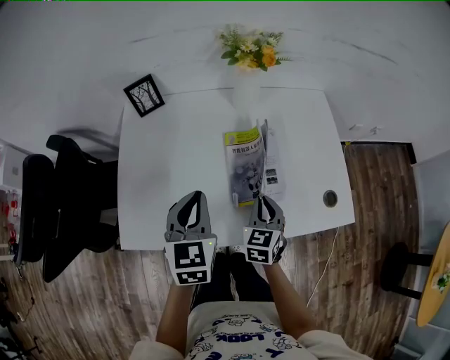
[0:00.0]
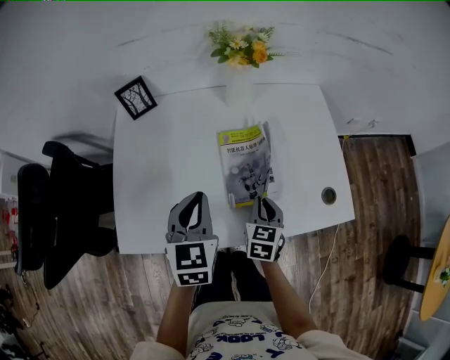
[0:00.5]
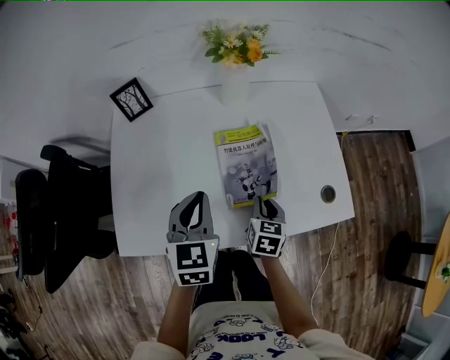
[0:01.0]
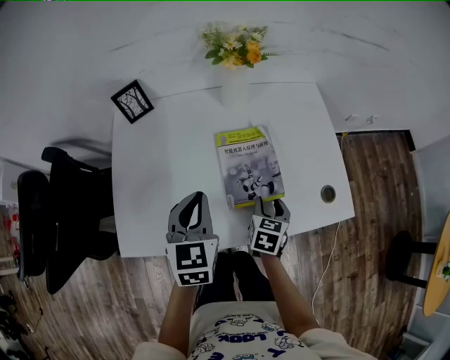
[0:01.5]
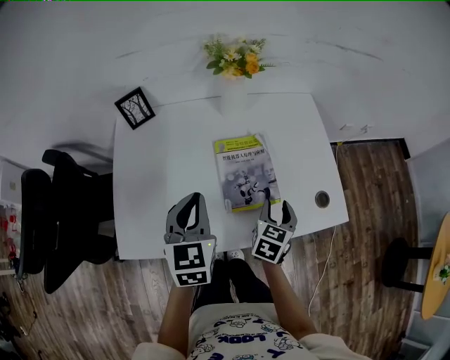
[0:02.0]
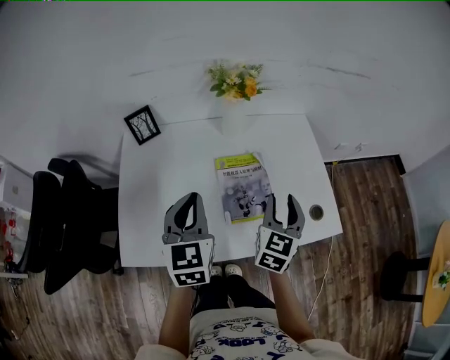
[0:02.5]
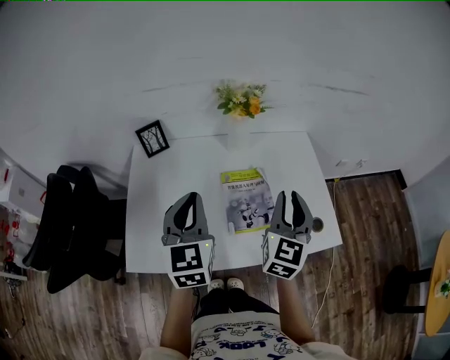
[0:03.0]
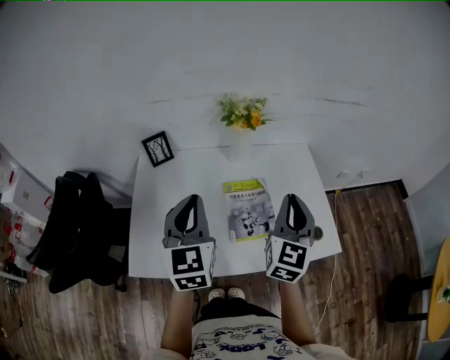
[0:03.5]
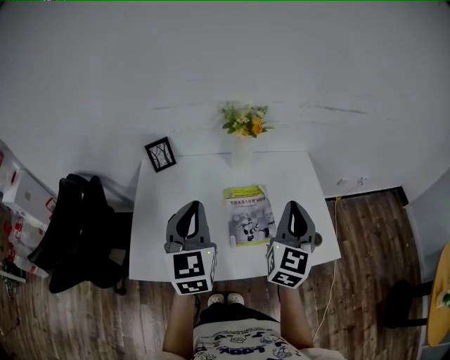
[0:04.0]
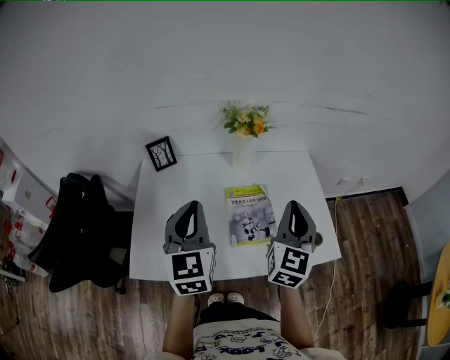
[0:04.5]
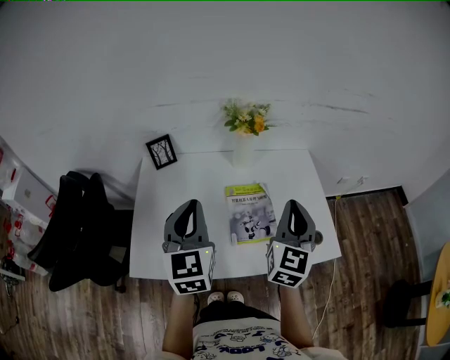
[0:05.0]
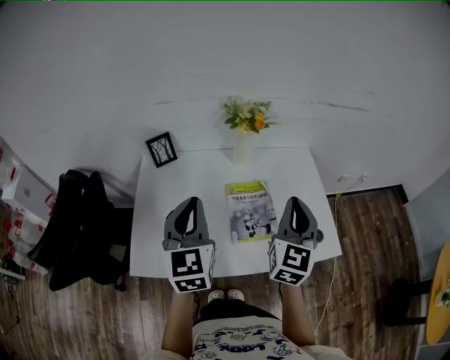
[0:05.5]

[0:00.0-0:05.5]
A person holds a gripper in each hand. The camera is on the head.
0:00.0 to 0:02.0: The right gripper moves to the right, about 10 cm, rotates about 20 degrees, and opens up.
0:02.0 to 0:03.5: The left gripper travels upward by approximately 15 cm. The right gripper moves upward, about 25 cm, angles its fingers upward, by roughly 30 degrees, and closes its fingers.
0:03.5 to 0:05.5: The grippers stay close to where they were, moving slightly.

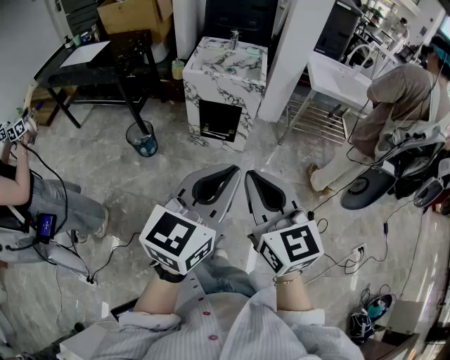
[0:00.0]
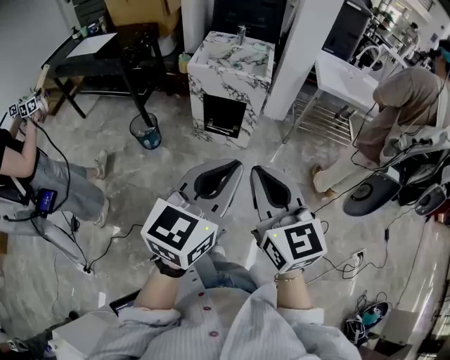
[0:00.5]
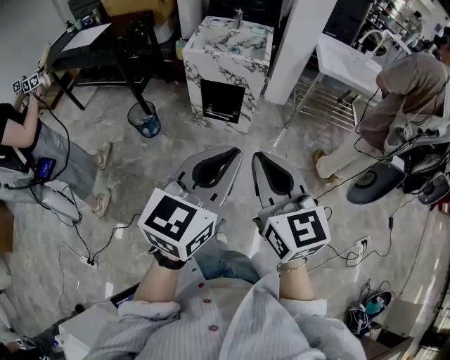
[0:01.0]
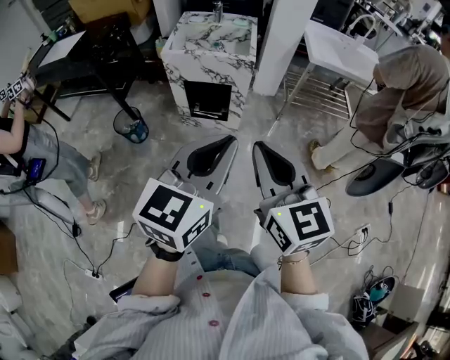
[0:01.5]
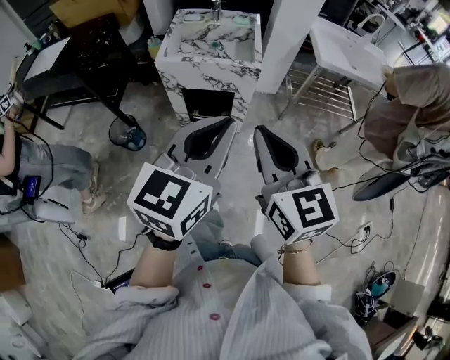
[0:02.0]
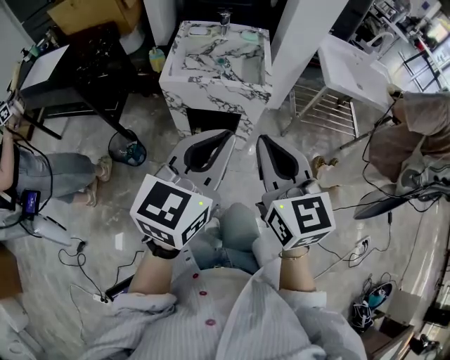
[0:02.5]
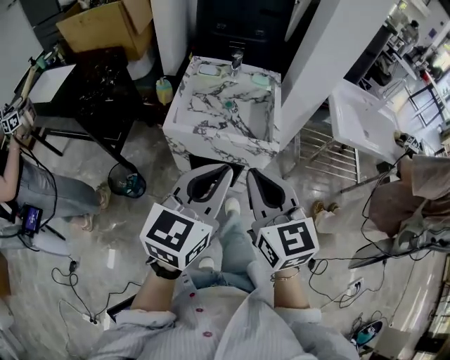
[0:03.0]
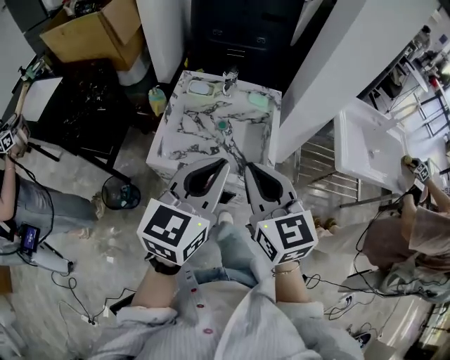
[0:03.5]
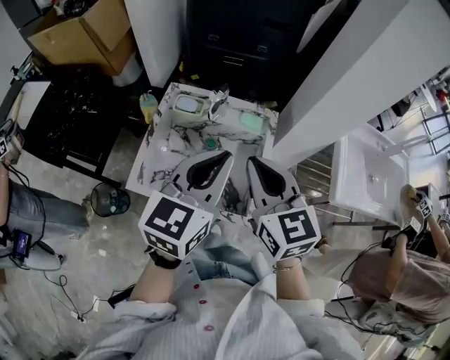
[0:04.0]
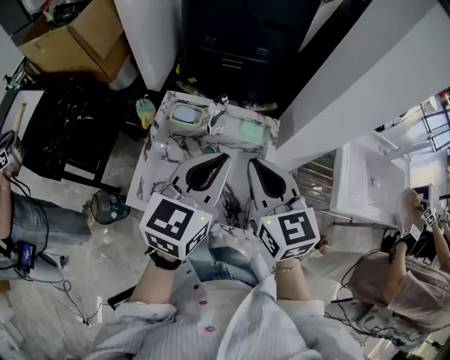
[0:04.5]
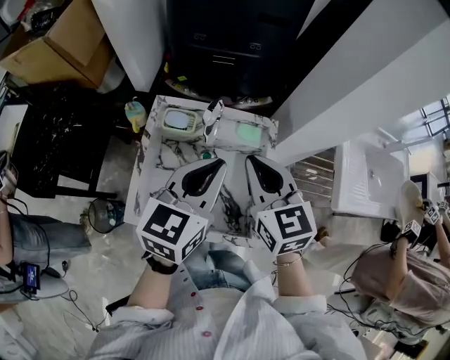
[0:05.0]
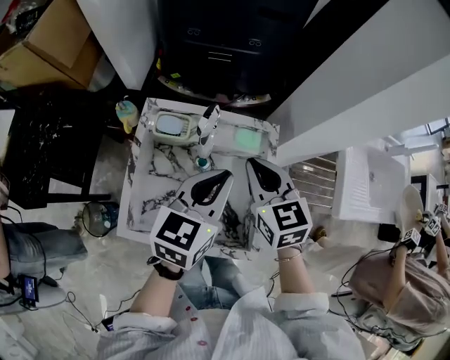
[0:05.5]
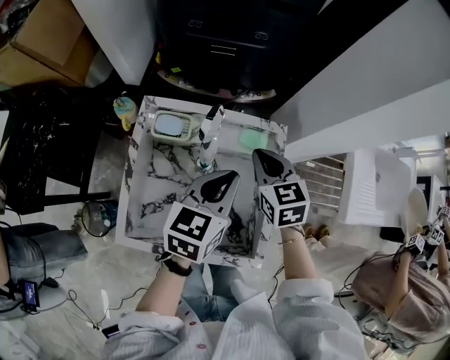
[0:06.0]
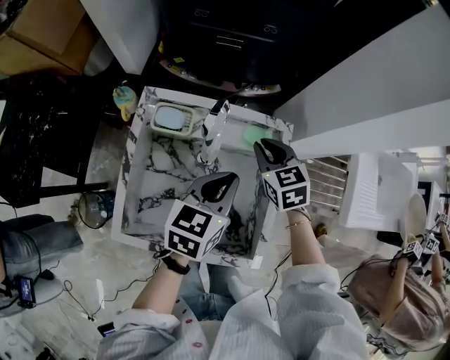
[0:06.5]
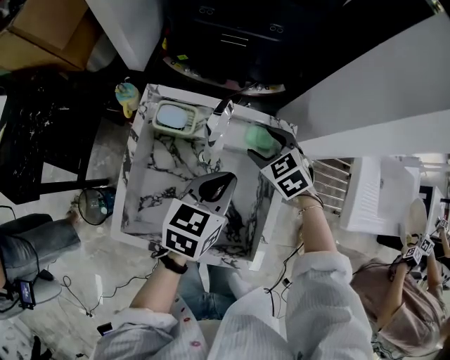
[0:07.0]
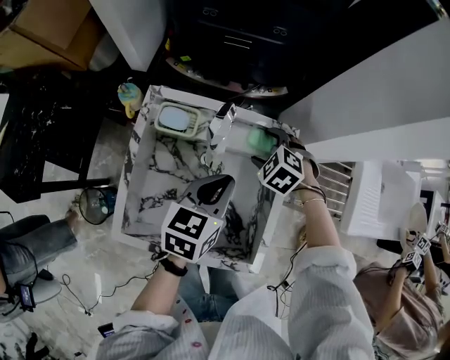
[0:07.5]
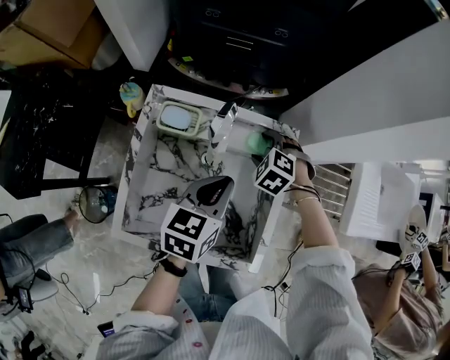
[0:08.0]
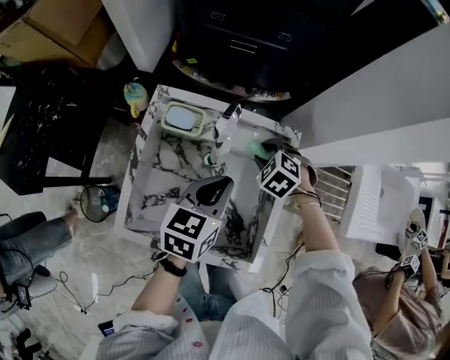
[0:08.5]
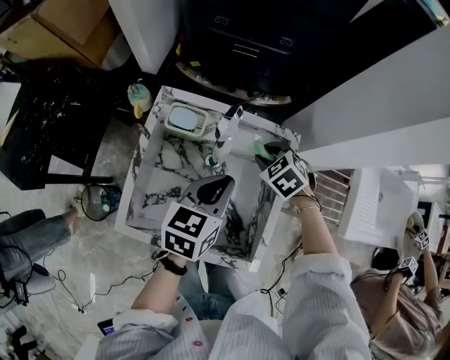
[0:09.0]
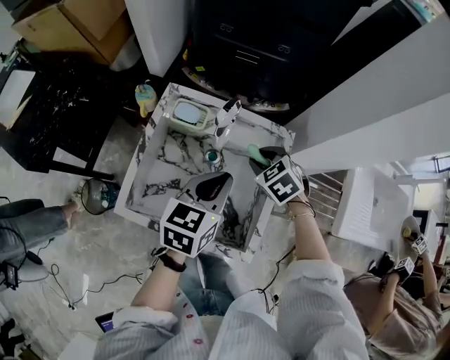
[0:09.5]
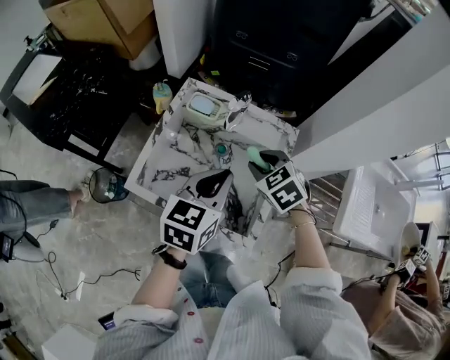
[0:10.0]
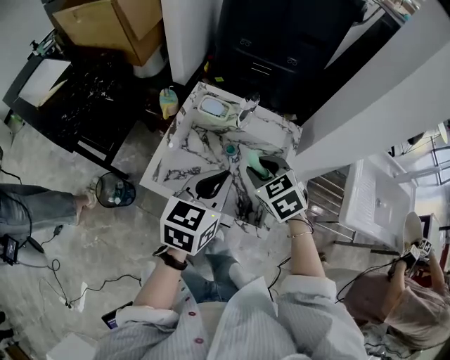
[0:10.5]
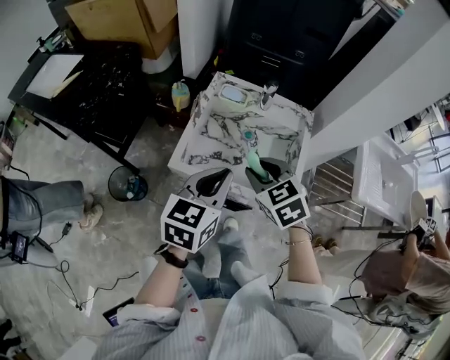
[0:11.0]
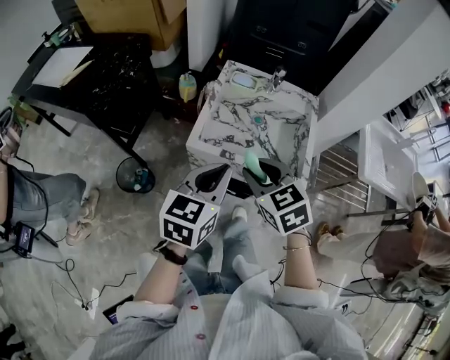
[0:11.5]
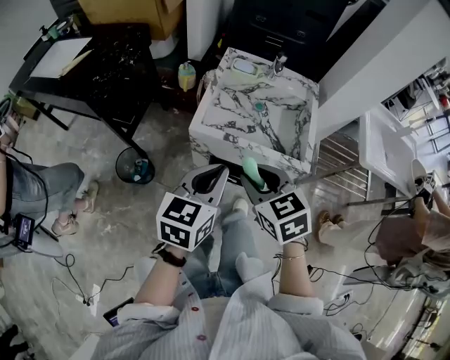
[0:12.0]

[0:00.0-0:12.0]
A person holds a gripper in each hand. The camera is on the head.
0:00.0 to 0:02.0: The two grippers go some 25 cm forward.
0:02.0 to 0:04.0: The pair of grippers is taken forward, roughly 50 cm.
0:04.0 to 0:06.0: The left gripper moves downward and forward, some 20 cm, and swivels about 20 degrees. The right gripper moves forward and downward, some 25 cm, and rotates some 20 degrees.
0:06.0 to 0:08.0: The right gripper travels downward by approximately 10 cm, rotates around the line of its fingers by about 50 degrees, counterclockwise from behind, and opens up. The left gripper moves about 5 cm.
0:08.0 to 0:10.0: The grippers both shift backward and upward by approximately 15 cm. The right gripper swivels about 30 degrees, and closes.
0:10.0 to 0:12.0: Both grippers move backward and to the left, approximately 35 cm. The right gripper rotates some 20 degrees.

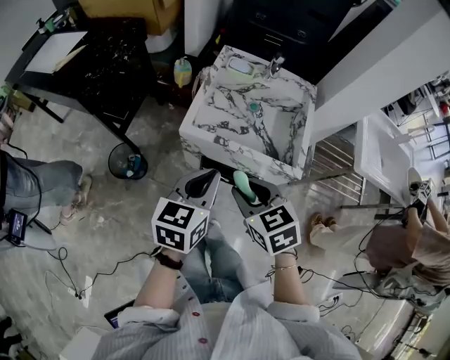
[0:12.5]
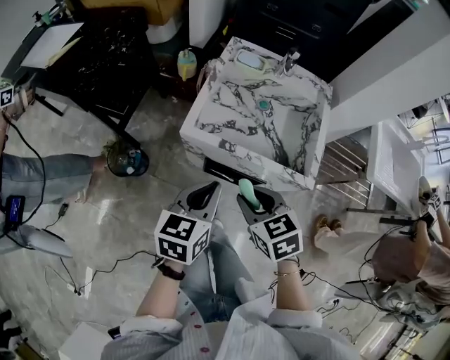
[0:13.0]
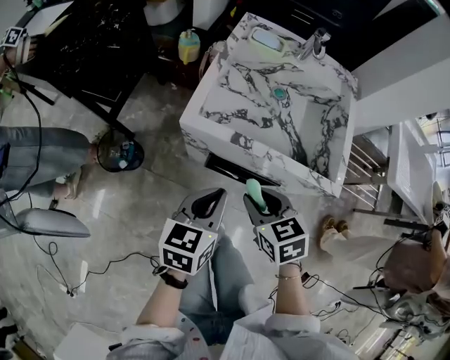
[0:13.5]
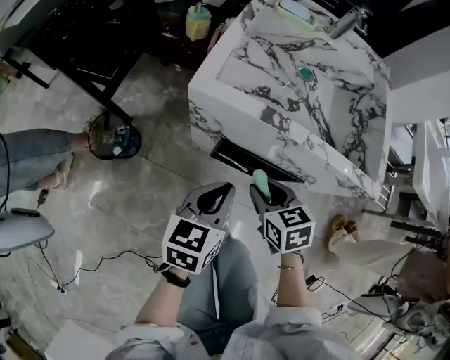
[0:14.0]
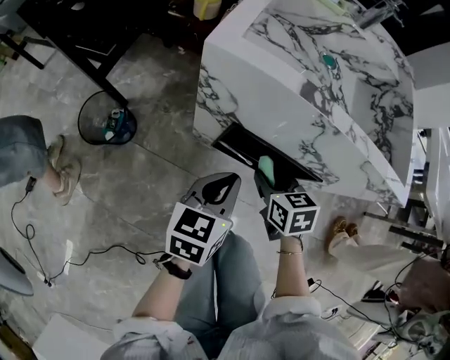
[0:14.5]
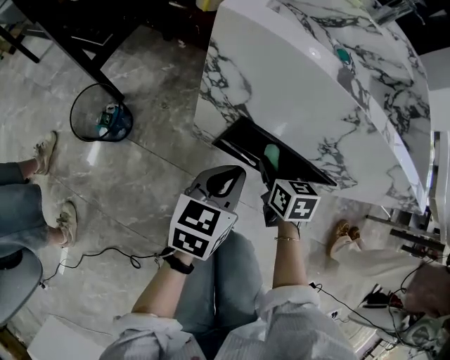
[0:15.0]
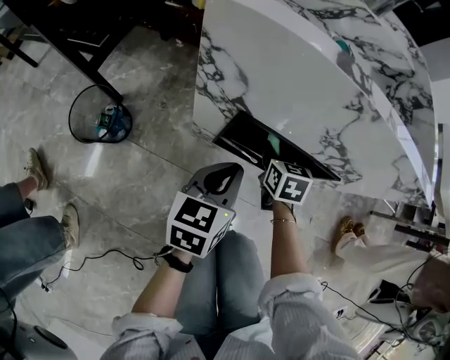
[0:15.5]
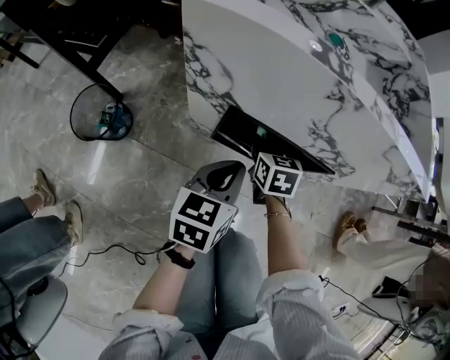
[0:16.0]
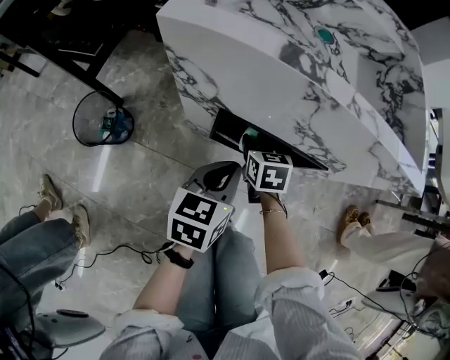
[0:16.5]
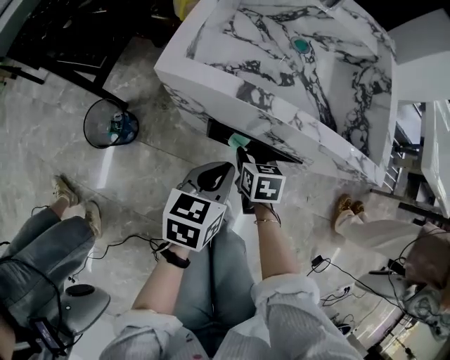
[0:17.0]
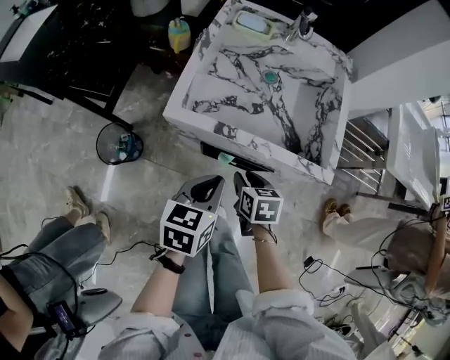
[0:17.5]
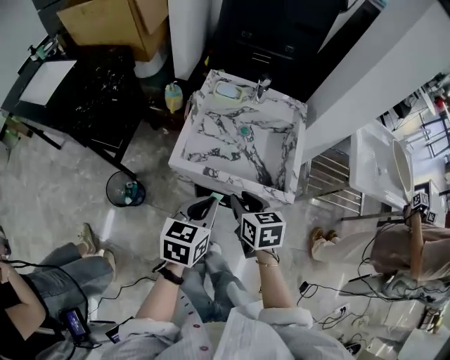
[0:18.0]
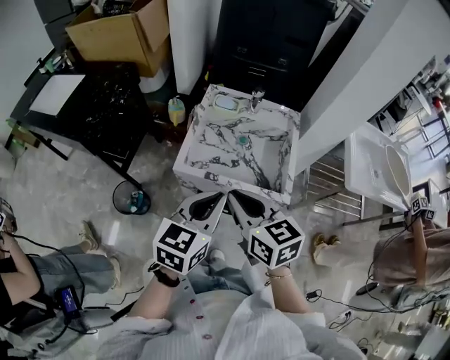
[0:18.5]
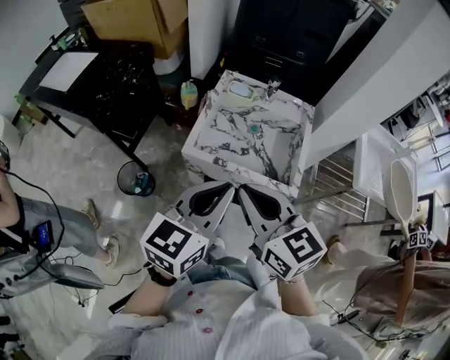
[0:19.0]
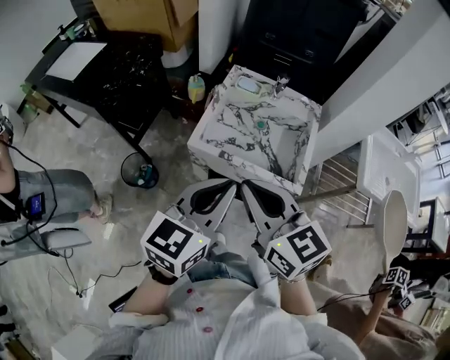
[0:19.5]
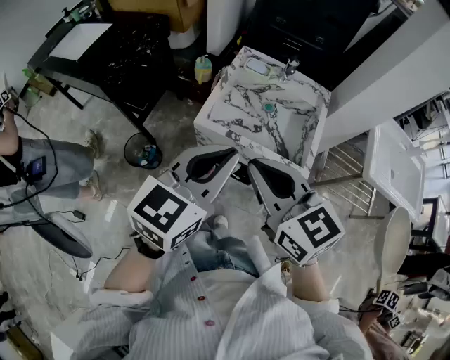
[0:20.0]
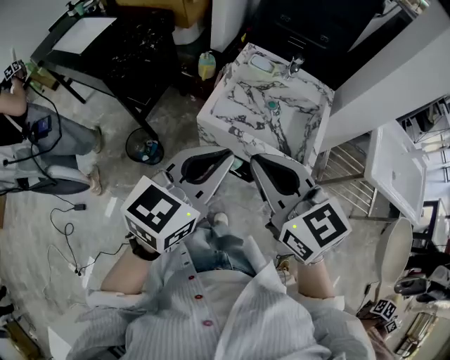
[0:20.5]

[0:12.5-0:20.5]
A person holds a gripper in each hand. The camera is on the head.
0:12.5 to 0:14.5: Both grippers move downward, some 40 cm.
0:14.5 to 0:16.5: The right gripper moves downward and forward, roughly 10 cm, while the left gripper changes place by roughly 5 cm.
0:16.5 to 0:18.5: The grippers both shift upward by some 50 cm. The right gripper rotates approximately 30 degrees. The left gripper swivels roughly 20 degrees.
0:18.5 to 0:20.5: The grippers both shift upward by approximately 5 cm. The right gripper rotates roughly 20 degrees.

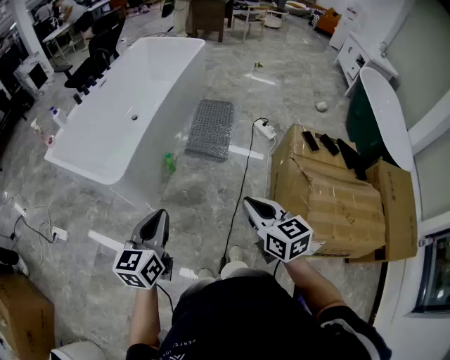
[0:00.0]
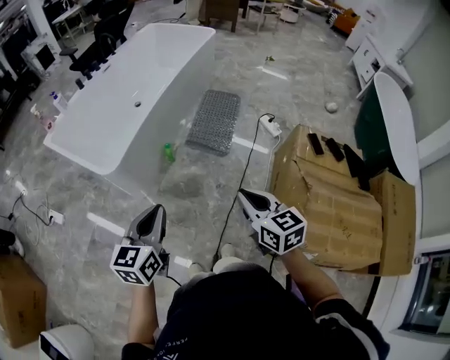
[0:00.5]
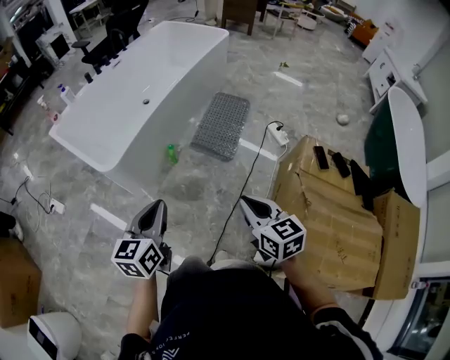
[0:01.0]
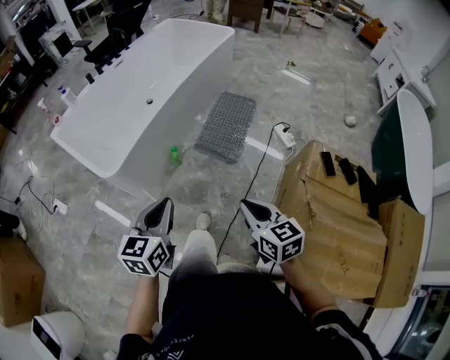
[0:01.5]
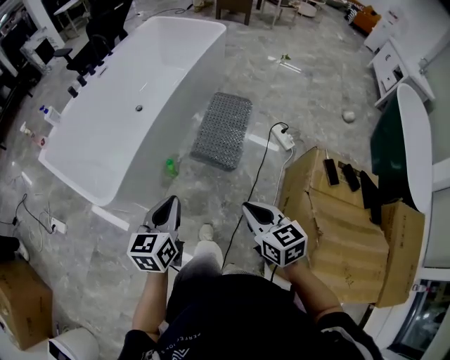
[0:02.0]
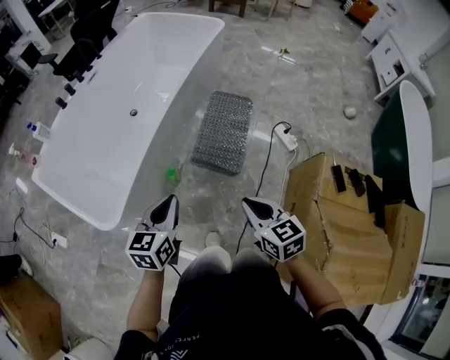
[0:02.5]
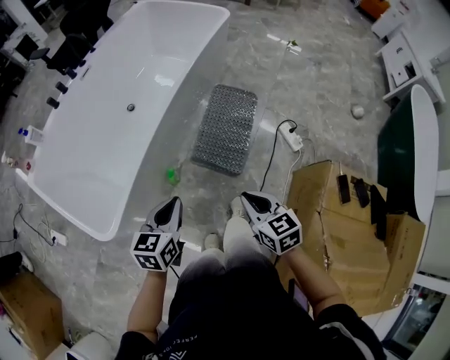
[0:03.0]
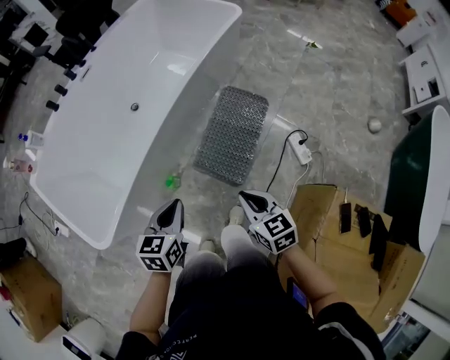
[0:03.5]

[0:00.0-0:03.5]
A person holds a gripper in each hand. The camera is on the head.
0:00.0 to 0:02.0: The left gripper goes roughly 25 cm forward and to the right. The right gripper goes about 20 cm forward.
0:02.0 to 0:03.5: The grippers both shift forward by about 30 cm.
